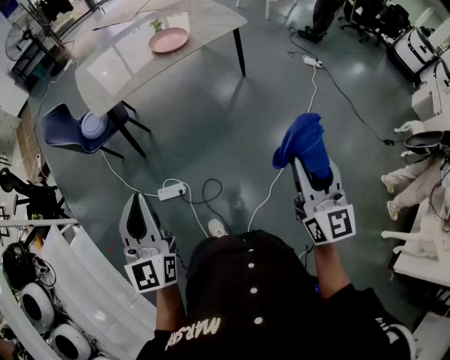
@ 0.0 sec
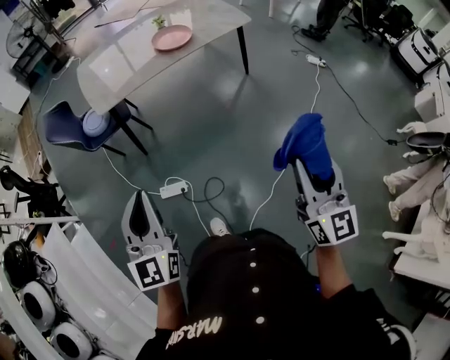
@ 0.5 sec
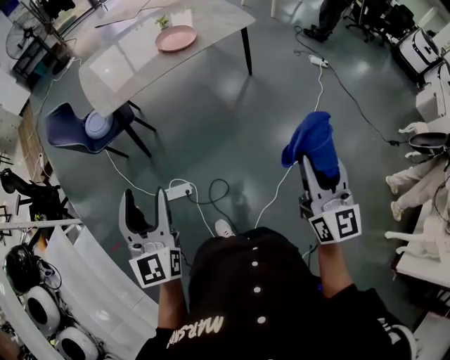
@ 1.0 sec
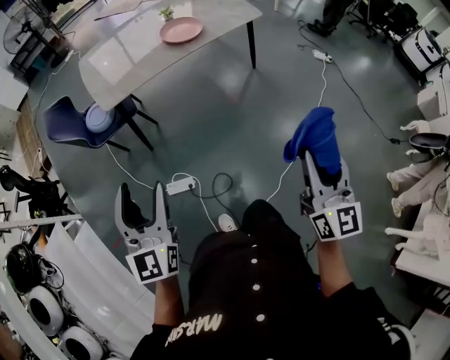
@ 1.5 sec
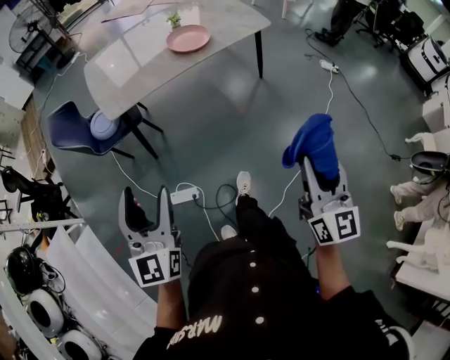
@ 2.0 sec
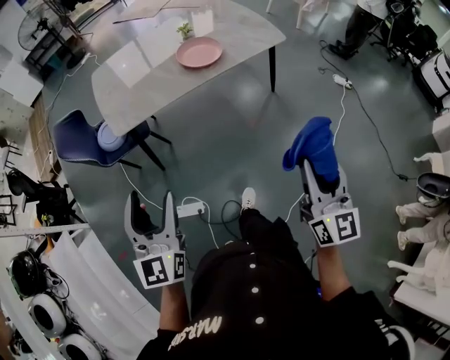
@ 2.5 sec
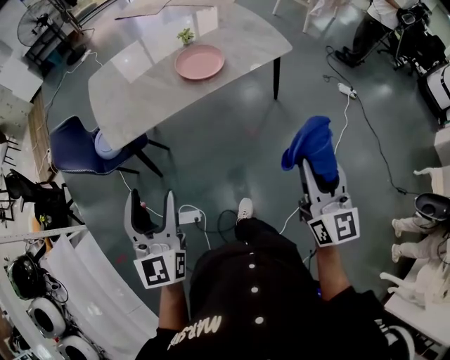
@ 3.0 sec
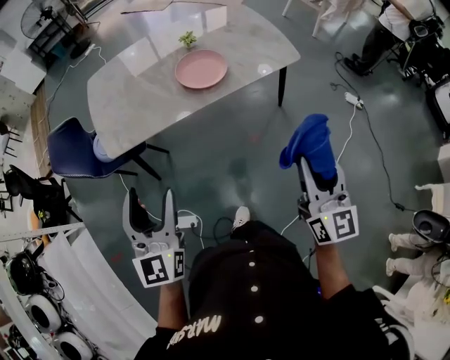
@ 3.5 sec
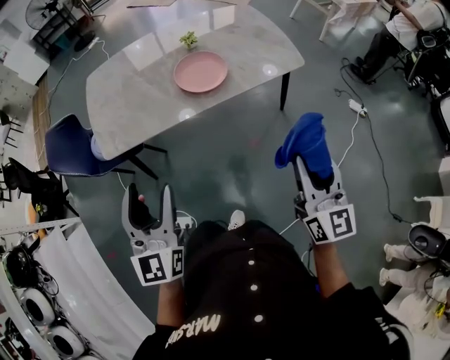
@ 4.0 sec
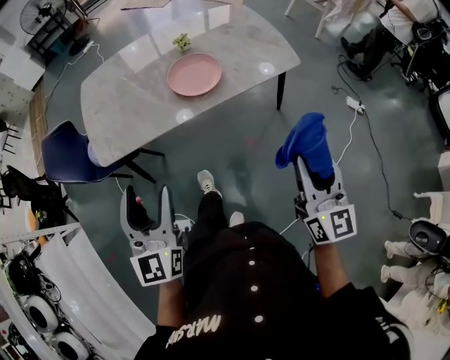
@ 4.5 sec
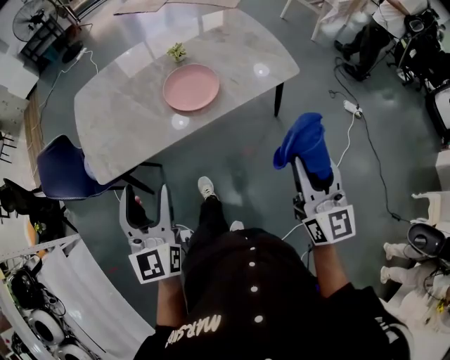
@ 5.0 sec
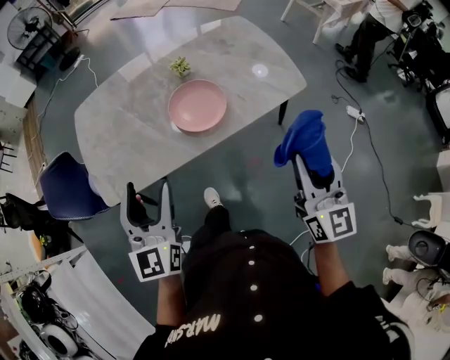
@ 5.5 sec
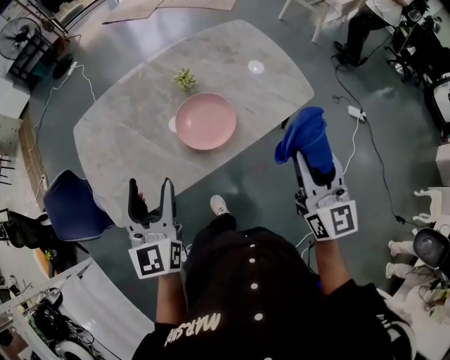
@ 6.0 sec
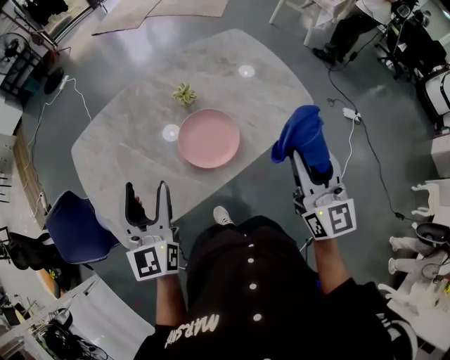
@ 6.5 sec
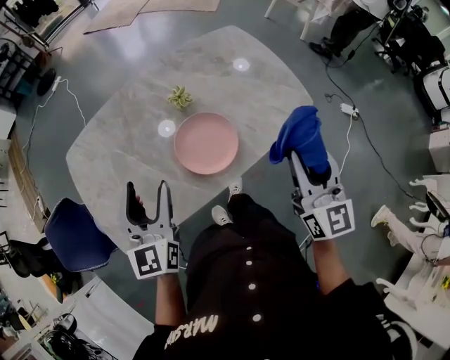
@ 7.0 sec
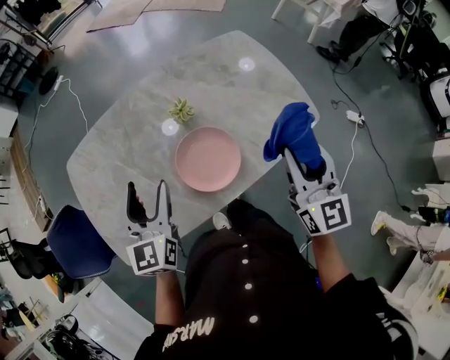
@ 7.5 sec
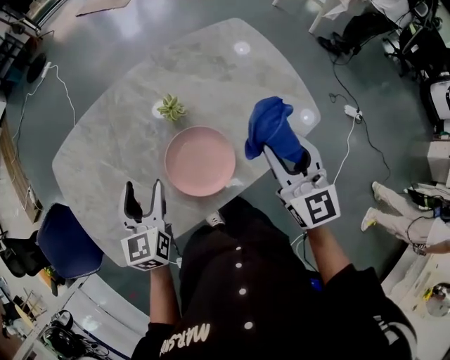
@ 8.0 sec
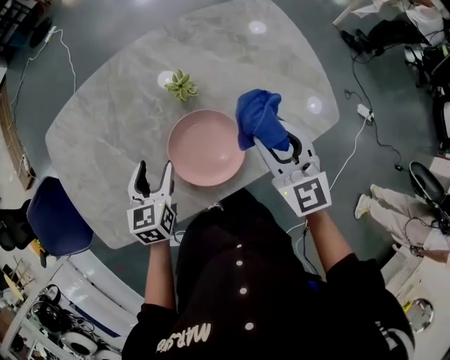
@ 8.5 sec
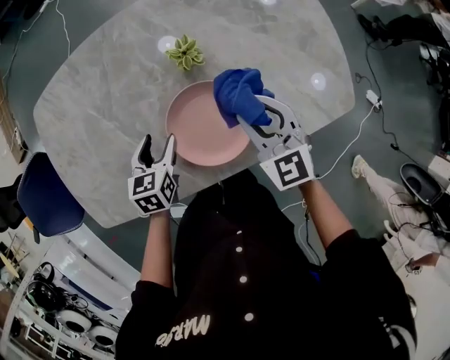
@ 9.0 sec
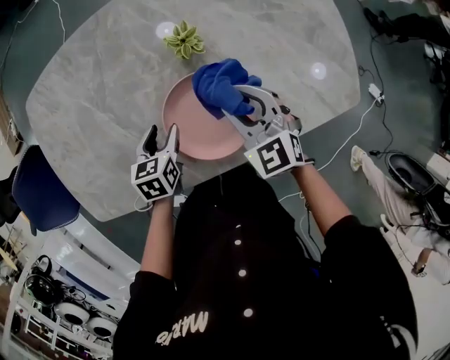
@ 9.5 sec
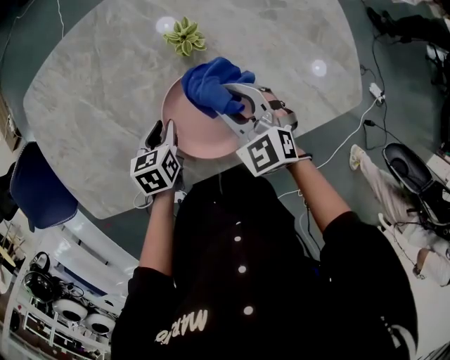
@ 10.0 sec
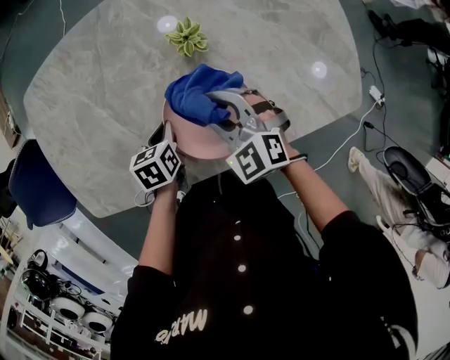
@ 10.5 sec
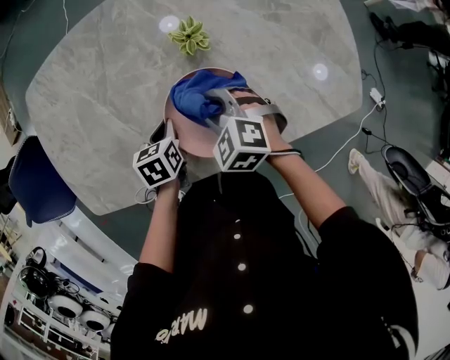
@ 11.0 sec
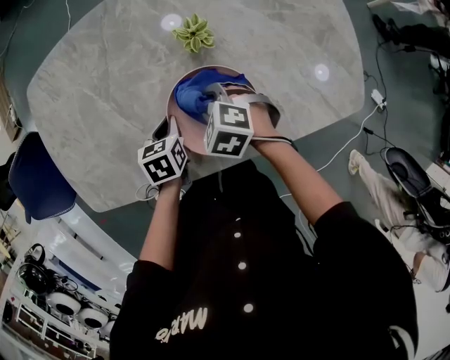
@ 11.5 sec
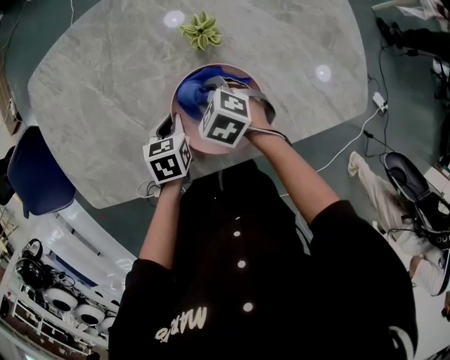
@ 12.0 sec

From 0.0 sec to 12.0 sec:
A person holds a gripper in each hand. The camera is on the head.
From 0.0 sec to 2.0 sec: The grippers both shift forward and to the left by approximately 10 cm. The left gripper opens its fingers.
From 2.0 sec to 4.0 sec: The right gripper heads forward, covering about 40 cm. Meanwhile the left gripper travels forward and to the right by about 35 cm.
From 4.0 sec to 6.0 sec: Both grippers move forward, approximately 30 cm.
From 6.0 sec to 8.0 sec: The right gripper goes about 25 cm forward, while the left gripper shifts some 25 cm forward and downward, and turns by roughly 20 degrees.
From 8.0 sec to 10.0 sec: The left gripper travels downward by some 25 cm, changes its angle by some 40 degrees, and closes its fingers, while the right gripper moves downward and to the left, roughly 25 cm, and rotates about 50 degrees.
From 10.0 sec to 12.0 sec: The right gripper is displaced downward and to the left by roughly 10 cm, and changes its angle by some 30 degrees.

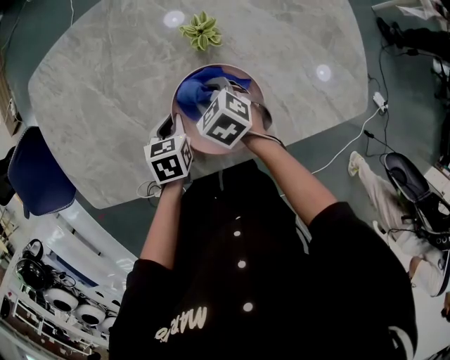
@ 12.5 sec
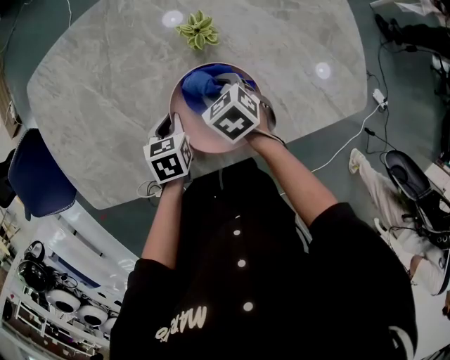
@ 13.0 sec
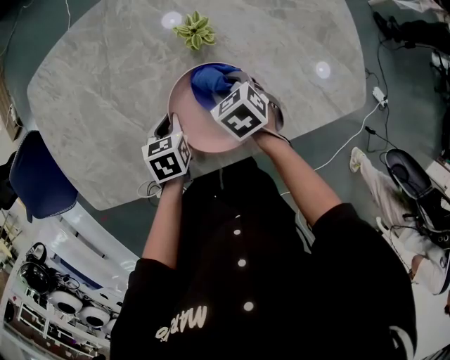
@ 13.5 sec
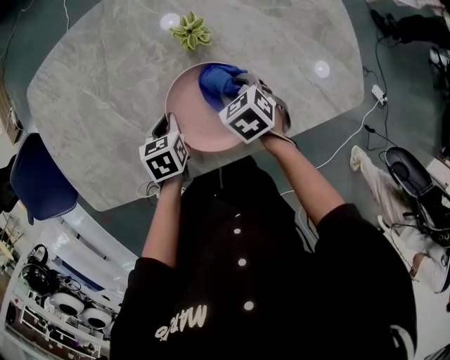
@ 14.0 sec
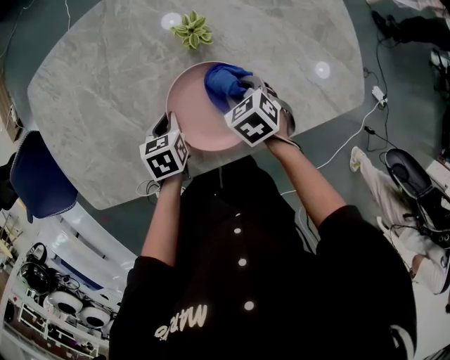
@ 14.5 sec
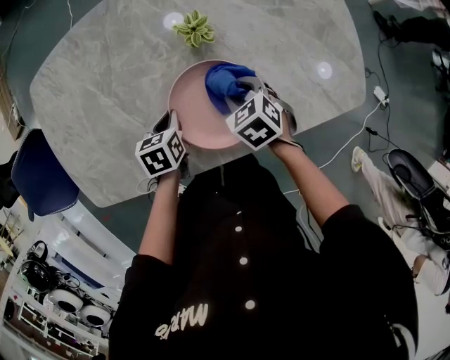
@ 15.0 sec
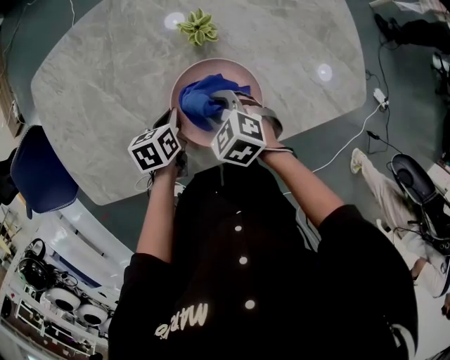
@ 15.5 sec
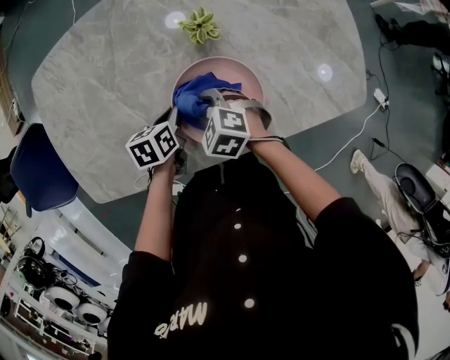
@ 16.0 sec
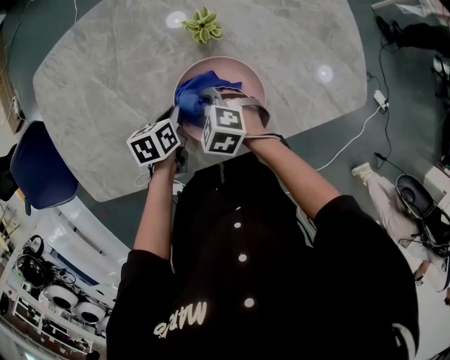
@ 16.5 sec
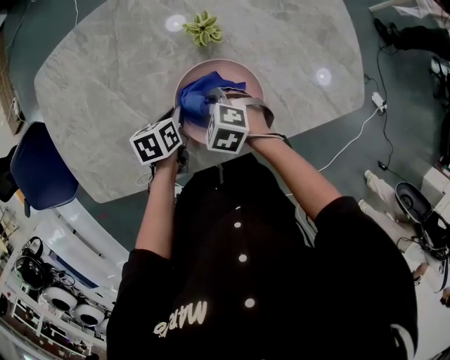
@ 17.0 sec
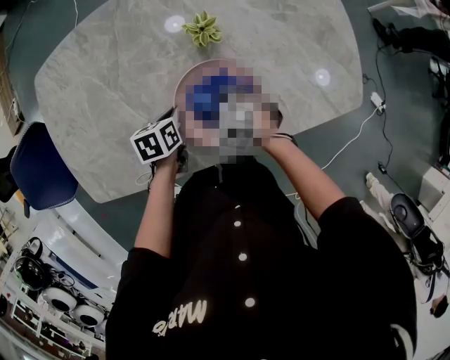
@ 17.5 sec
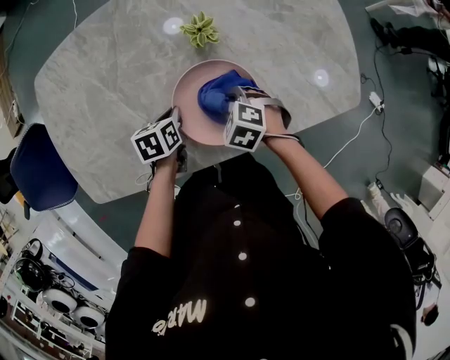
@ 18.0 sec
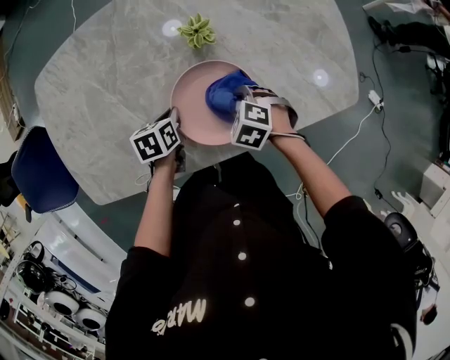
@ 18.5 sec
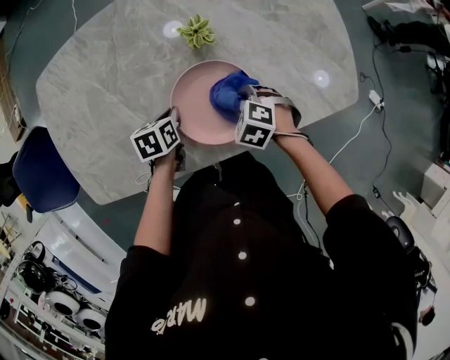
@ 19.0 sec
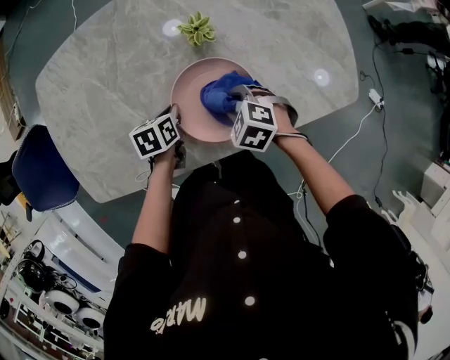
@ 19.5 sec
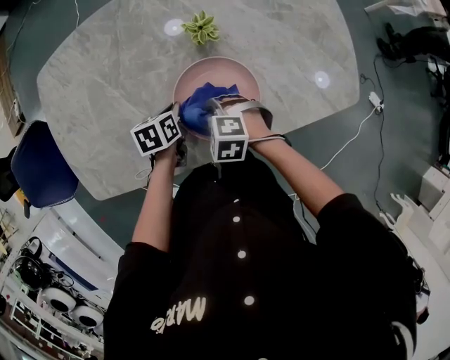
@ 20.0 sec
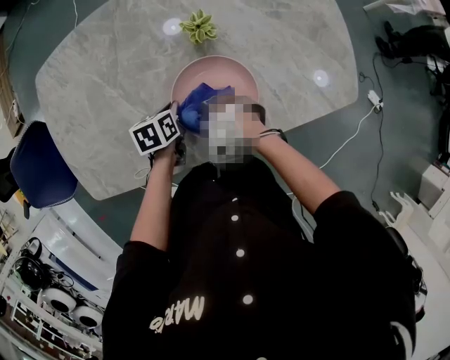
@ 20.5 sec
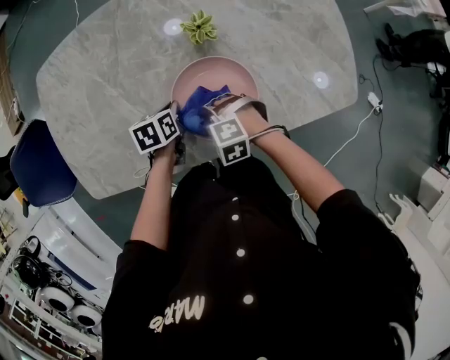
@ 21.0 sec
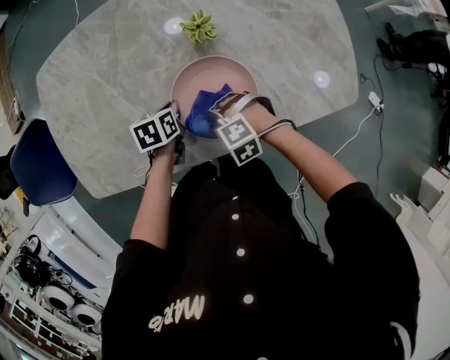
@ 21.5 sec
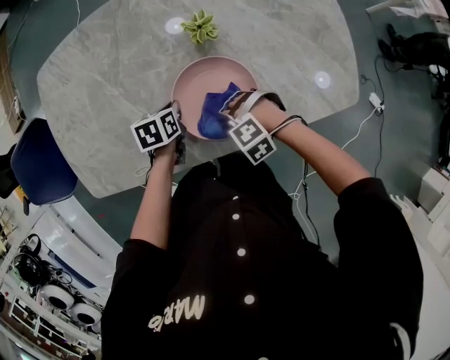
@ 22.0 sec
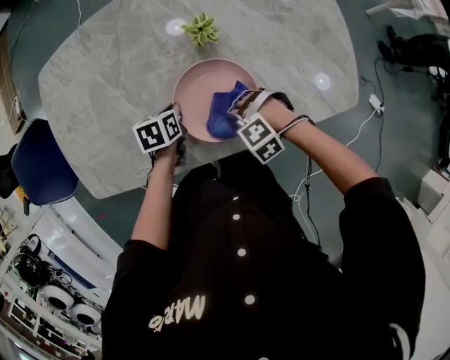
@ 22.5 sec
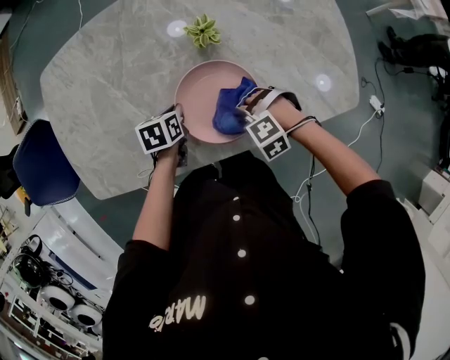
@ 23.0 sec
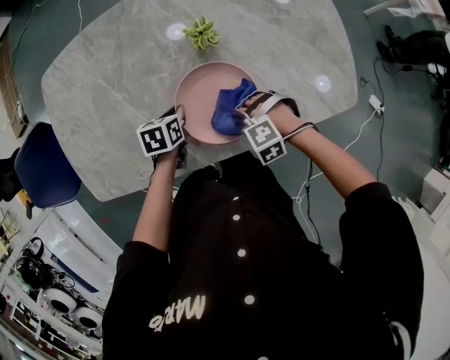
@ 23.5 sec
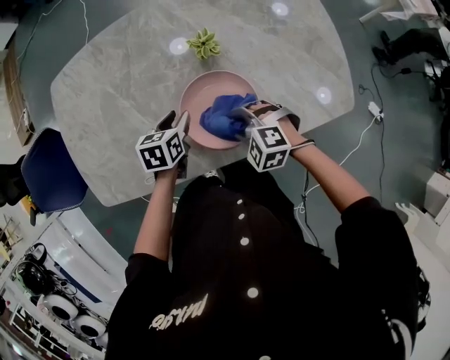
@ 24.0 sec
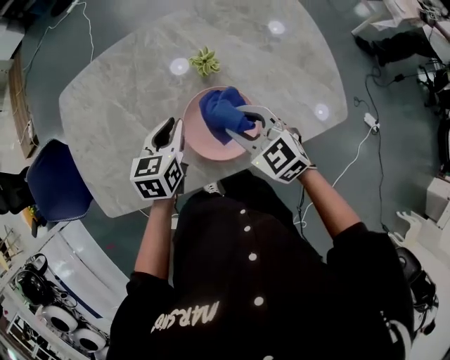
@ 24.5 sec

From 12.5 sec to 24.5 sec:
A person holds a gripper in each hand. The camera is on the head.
From 12.5 sec to 14.5 sec: The right gripper heads to the right, covering approximately 10 cm.
From 14.5 sec to 16.5 sec: The right gripper goes about 15 cm to the left, and swivels about 30 degrees.
From 16.5 sec to 18.5 sec: The right gripper ends up approximately 10 cm from where it was.
From 18.5 sec to 20.5 sec: The right gripper ends up some 10 cm from where it was, and turns by some 30 degrees.
From 20.5 sec to 22.5 sec: The right gripper moves approximately 10 cm, and rotates about 30 degrees.
From 22.5 sec to 24.5 sec: Both grippers travel together upward, roughly 20 cm. The left gripper changes its angle by about 30 degrees. Meanwhile the right gripper angles its fingers upward, by approximately 40 degrees.

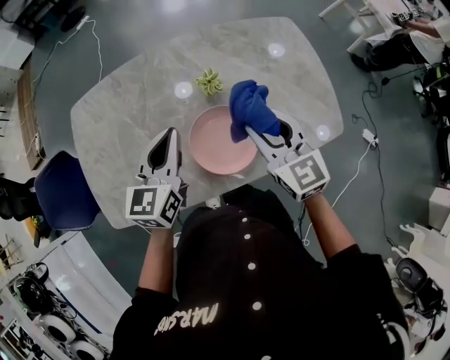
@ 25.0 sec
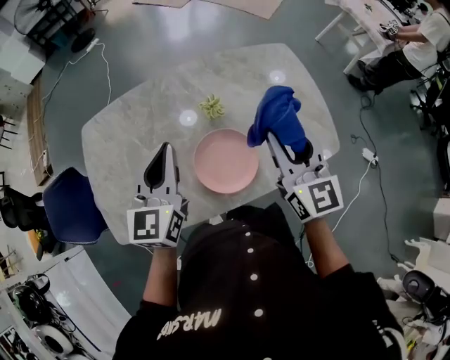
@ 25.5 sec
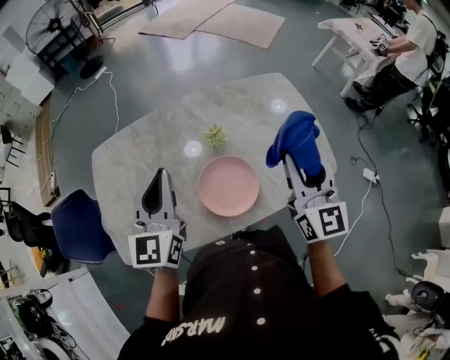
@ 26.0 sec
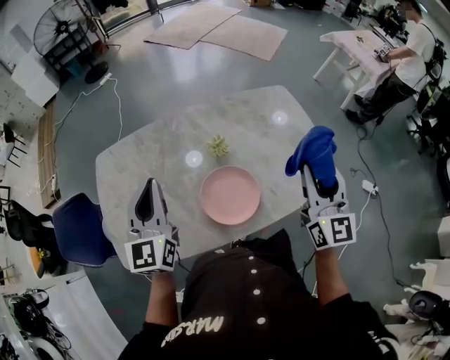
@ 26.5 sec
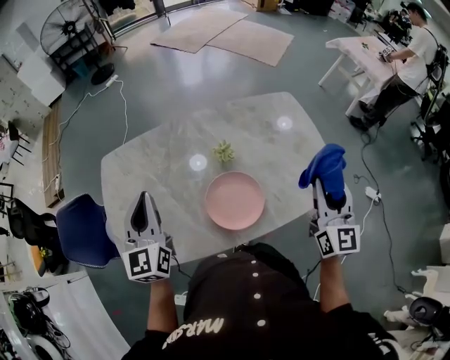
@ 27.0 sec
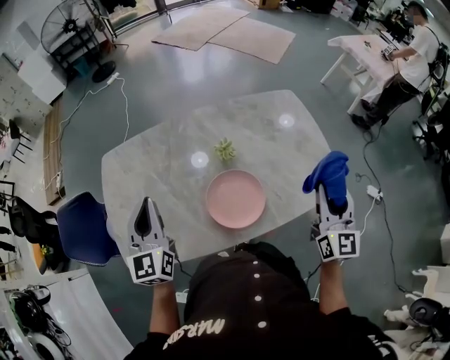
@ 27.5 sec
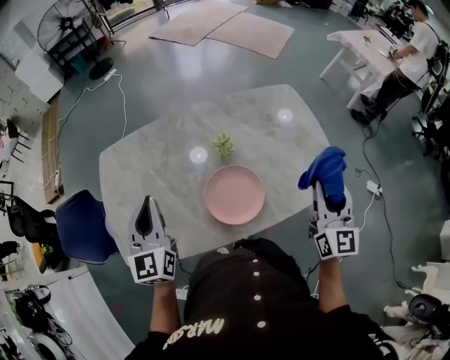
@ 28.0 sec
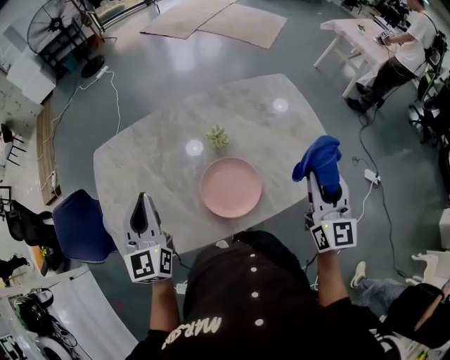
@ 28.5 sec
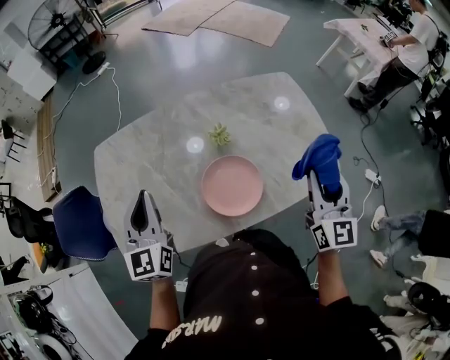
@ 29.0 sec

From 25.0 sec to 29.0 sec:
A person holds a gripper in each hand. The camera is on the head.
From 25.0 sec to 27.0 sec: The left gripper shifts roughly 15 cm to the left and upward, and swivels roughly 30 degrees. The right gripper goes about 20 cm to the right, upward and backward, and rotates about 30 degrees.
From 27.0 sec to 29.0 sec: The grippers make only small movements.
